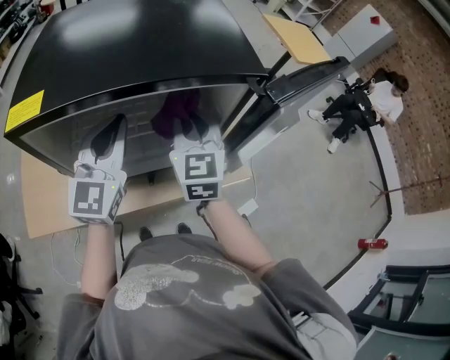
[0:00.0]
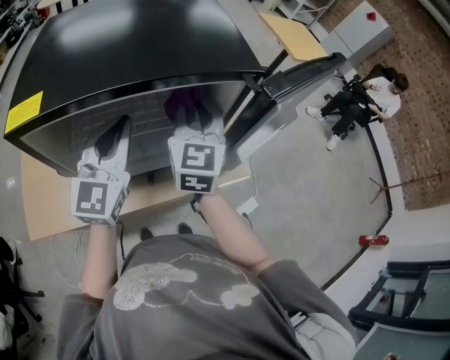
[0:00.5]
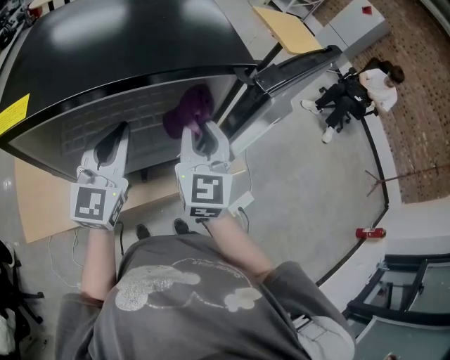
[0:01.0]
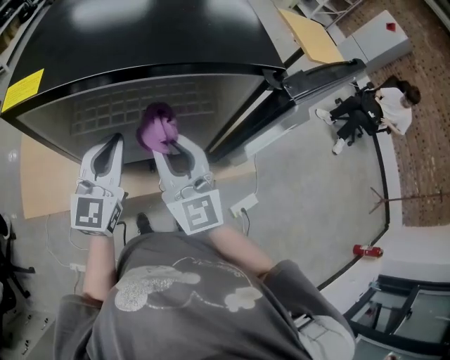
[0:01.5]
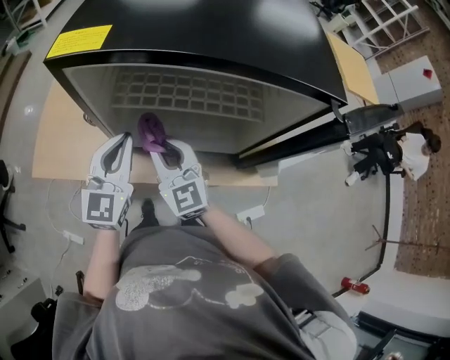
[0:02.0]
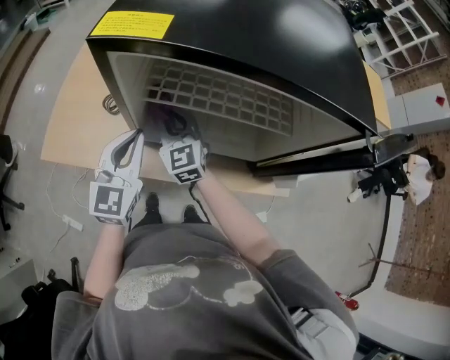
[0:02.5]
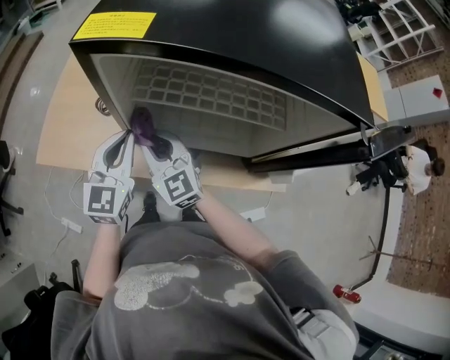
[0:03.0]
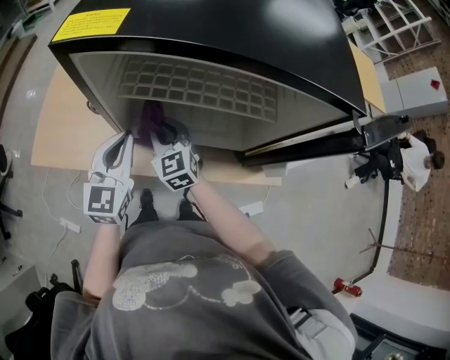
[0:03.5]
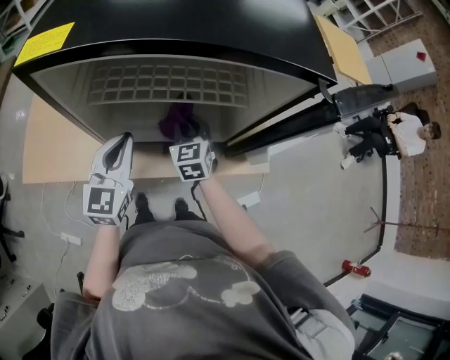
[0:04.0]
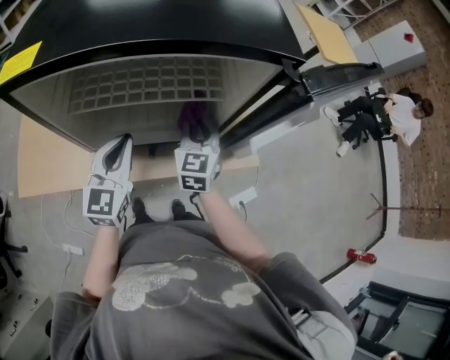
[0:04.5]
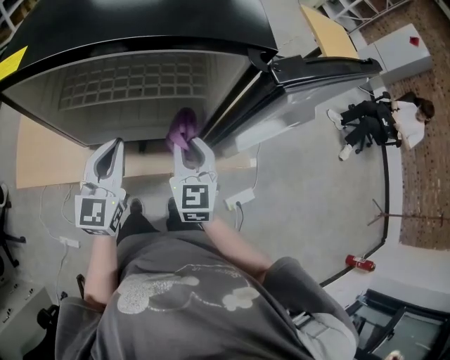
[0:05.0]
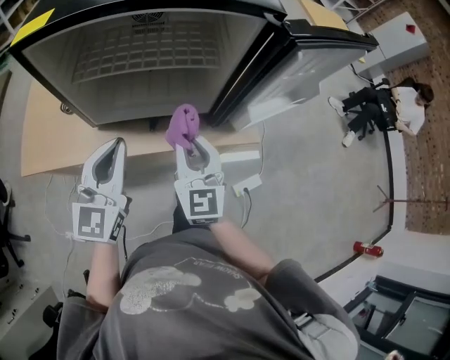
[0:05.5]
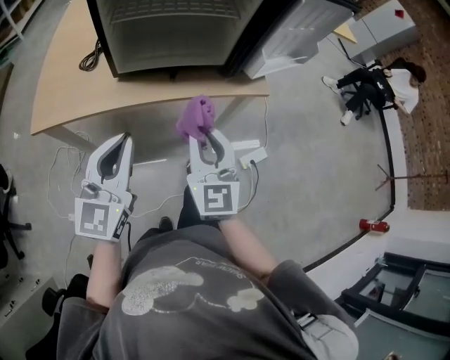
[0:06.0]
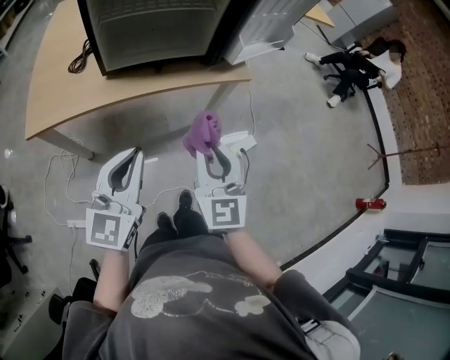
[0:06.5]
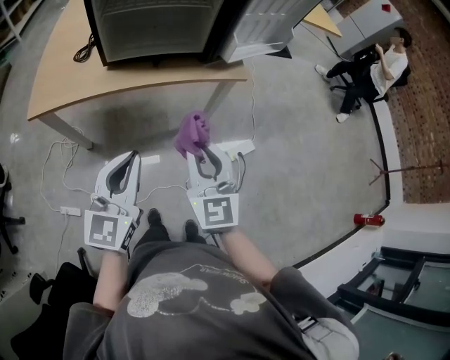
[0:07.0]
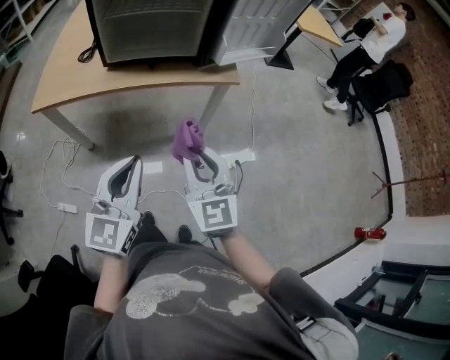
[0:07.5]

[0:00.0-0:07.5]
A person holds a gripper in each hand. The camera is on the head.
0:00.0 to 0:02.0: The left gripper ends up some 15 cm from where it was. Meanwhile the right gripper moves some 20 cm, and rotates about 40 degrees.
0:02.0 to 0:04.0: The right gripper is displaced to the right, downward and forward by approximately 15 cm, and turns by roughly 30 degrees. Meanwhile the left gripper shifts by approximately 5 cm.
0:04.0 to 0:05.5: The right gripper moves backward and upward, roughly 20 cm, and swivels about 20 degrees. Meanwhile the left gripper goes about 15 cm backward, upward and to the right.
0:05.5 to 0:07.5: The grippers both shift backward by about 30 cm.

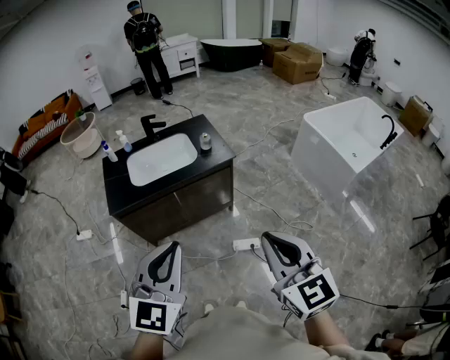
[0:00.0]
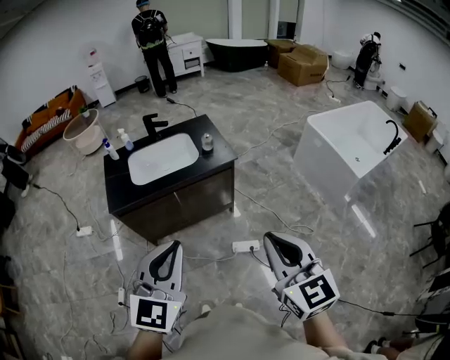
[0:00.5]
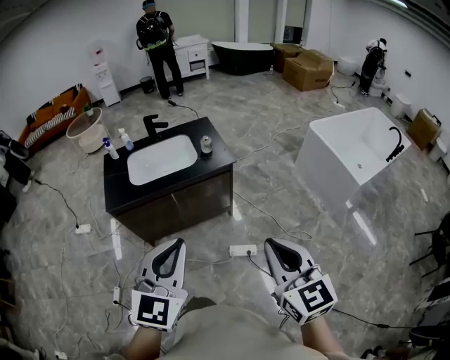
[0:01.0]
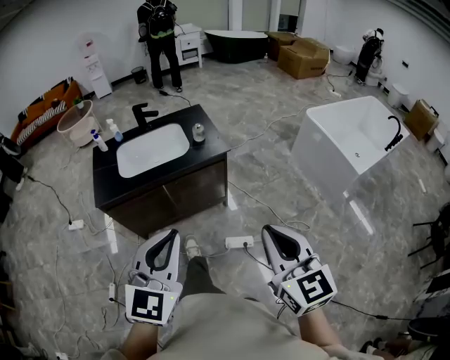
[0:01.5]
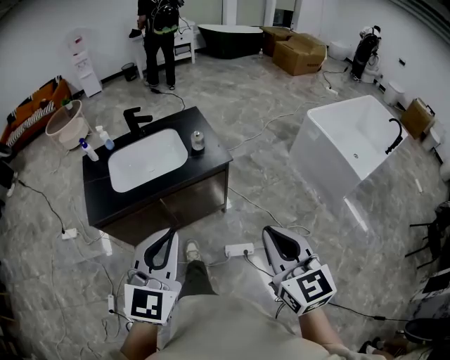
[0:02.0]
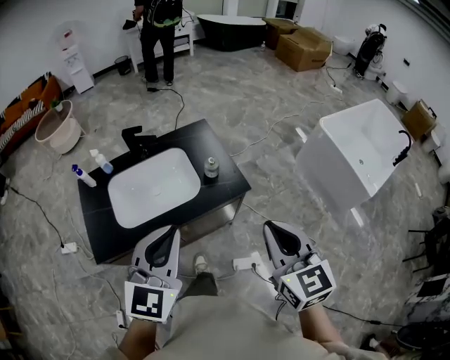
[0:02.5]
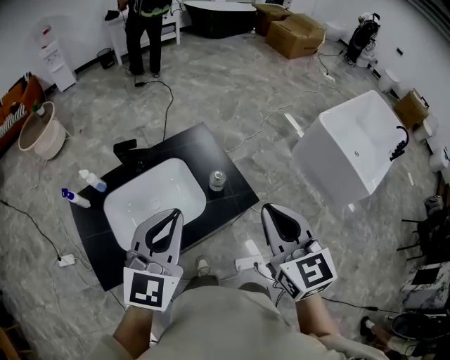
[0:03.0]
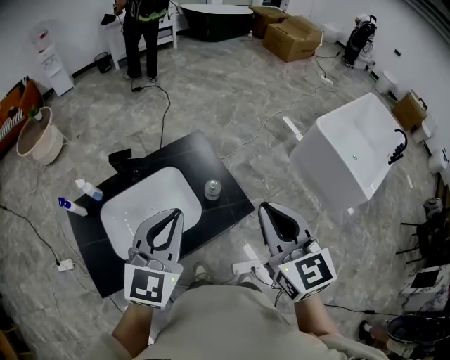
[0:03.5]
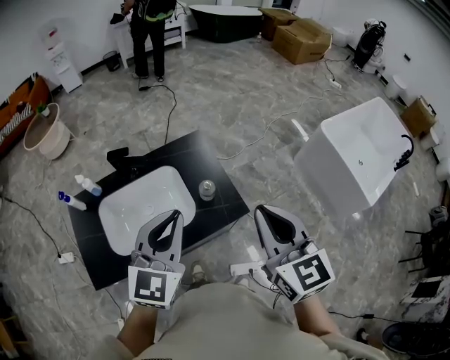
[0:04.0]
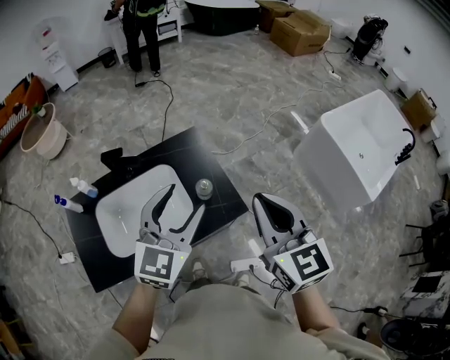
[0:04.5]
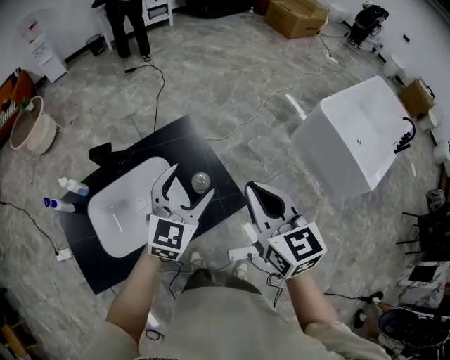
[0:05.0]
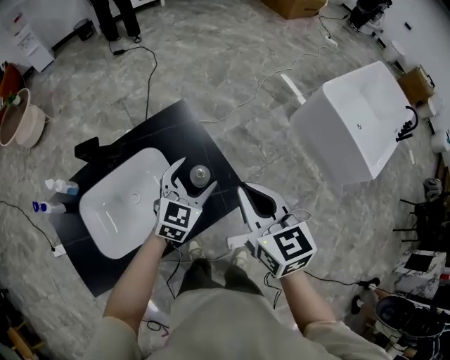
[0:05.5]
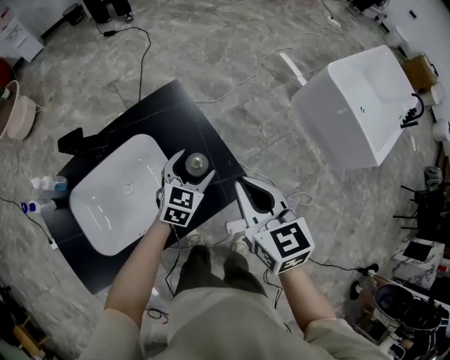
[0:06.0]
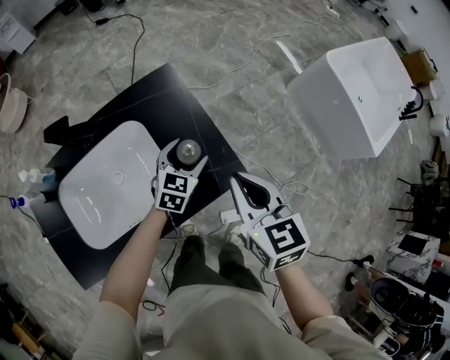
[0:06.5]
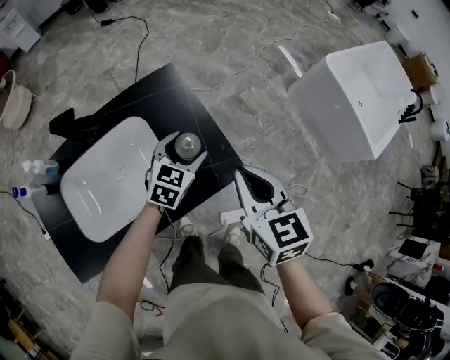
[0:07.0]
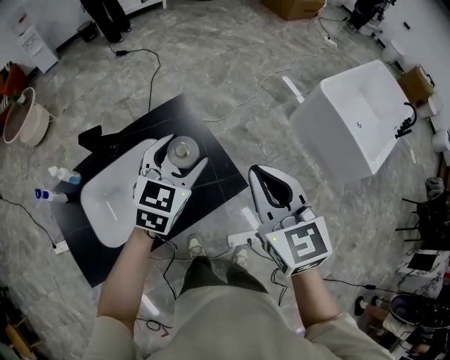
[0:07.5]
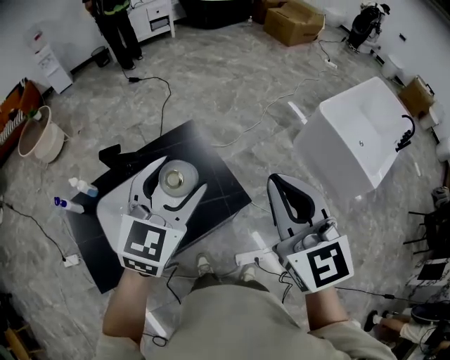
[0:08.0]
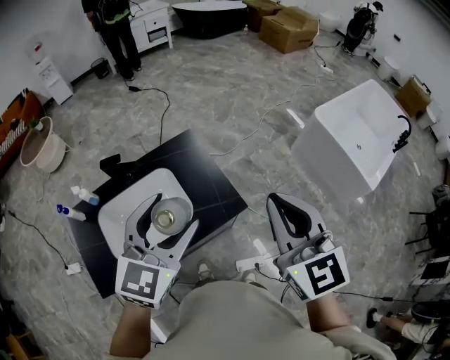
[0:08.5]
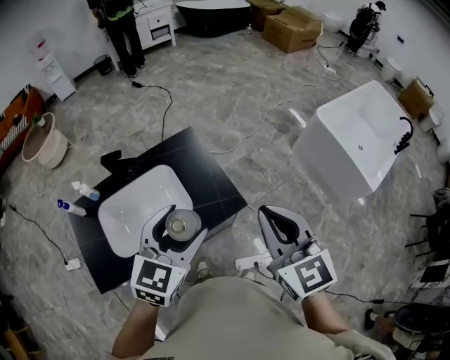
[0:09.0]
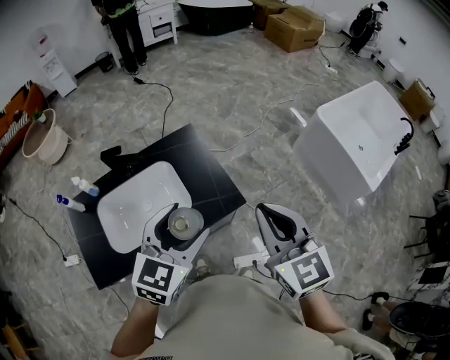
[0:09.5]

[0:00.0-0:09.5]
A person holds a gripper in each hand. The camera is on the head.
0:00.0 to 0:02.0: Both grippers travel together forward and downward, roughly 20 cm.
0:02.0 to 0:04.0: The two grippers travel together, forward, roughly 40 cm.
0:04.0 to 0:05.5: The right gripper shifts some 20 cm downward and forward; the left gripper is displaced downward and forward by about 30 cm, changes its angle by about 20 degrees, and opens.
0:05.5 to 0:07.5: The left gripper travels upward by approximately 10 cm. The right gripper shifts some 5 cm upward.
0:07.5 to 0:09.5: The left gripper is displaced backward and upward by roughly 20 cm; the right gripper moves backward and upward, some 10 cm.

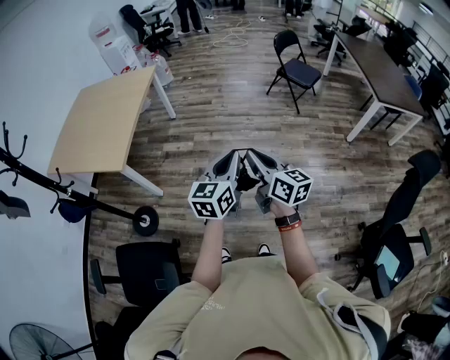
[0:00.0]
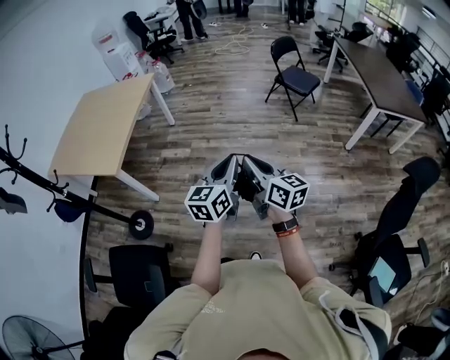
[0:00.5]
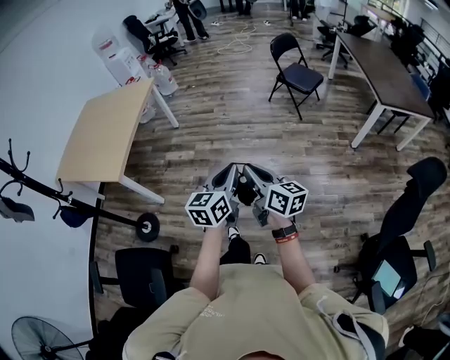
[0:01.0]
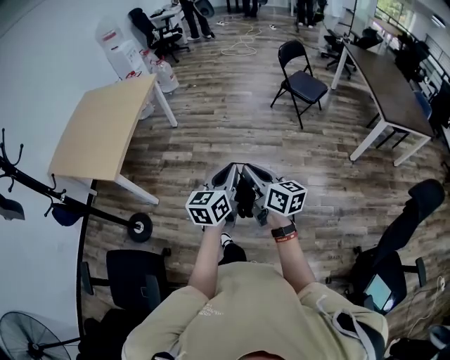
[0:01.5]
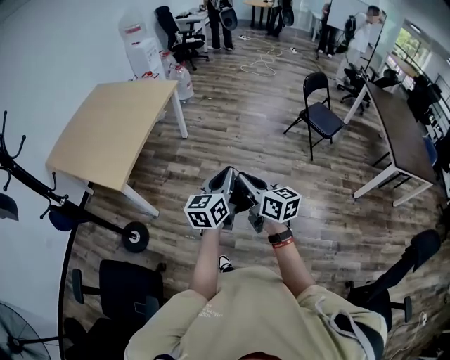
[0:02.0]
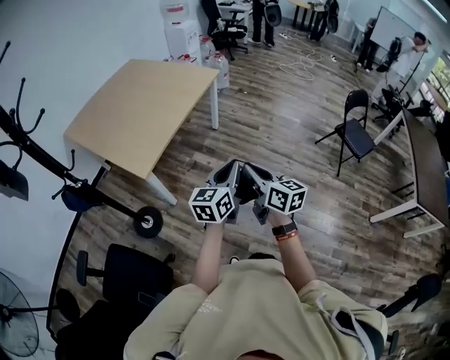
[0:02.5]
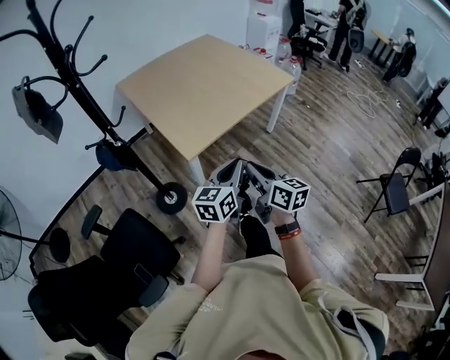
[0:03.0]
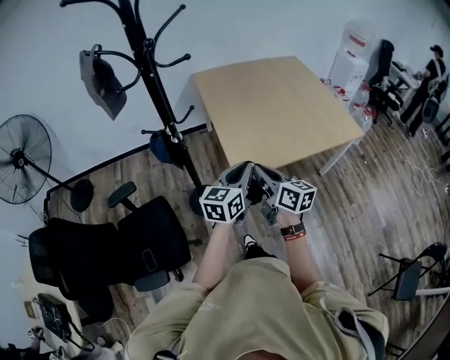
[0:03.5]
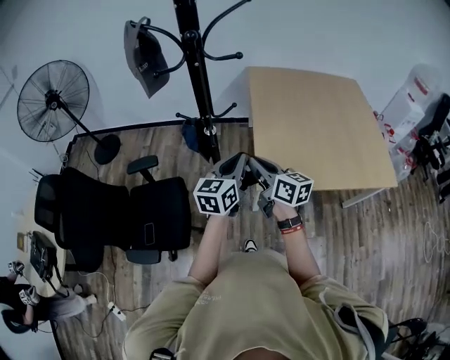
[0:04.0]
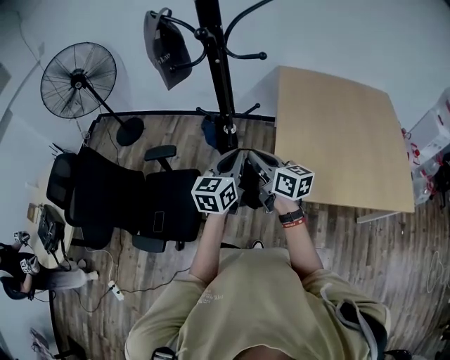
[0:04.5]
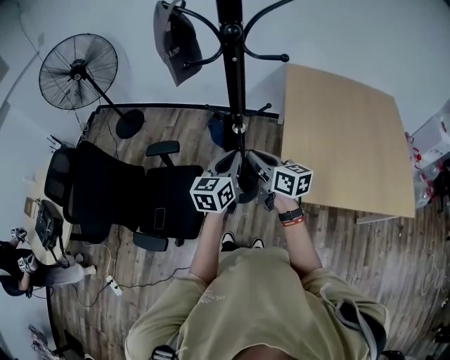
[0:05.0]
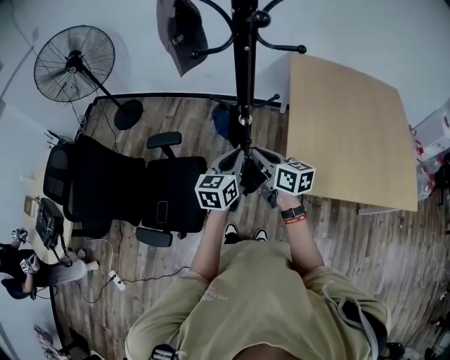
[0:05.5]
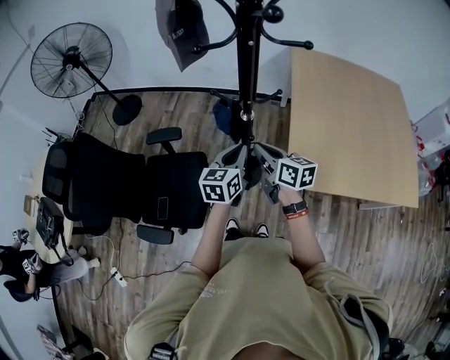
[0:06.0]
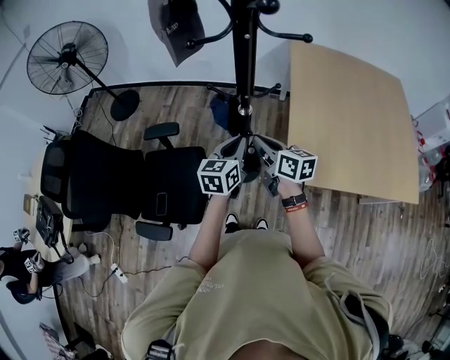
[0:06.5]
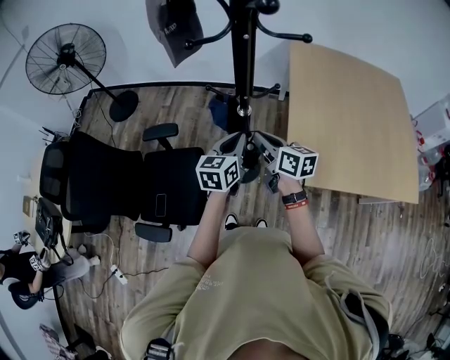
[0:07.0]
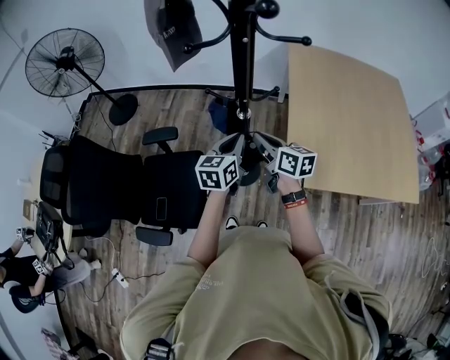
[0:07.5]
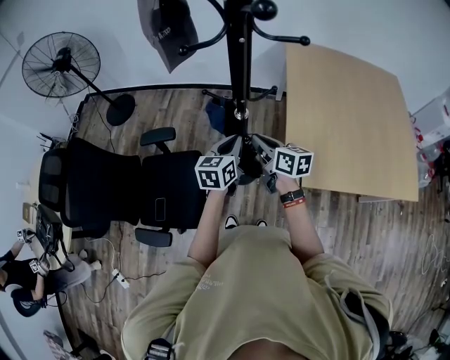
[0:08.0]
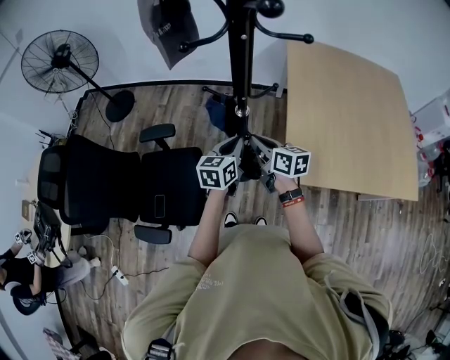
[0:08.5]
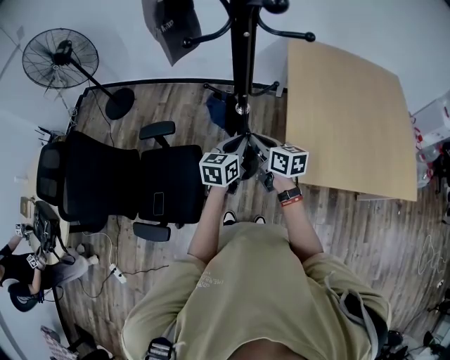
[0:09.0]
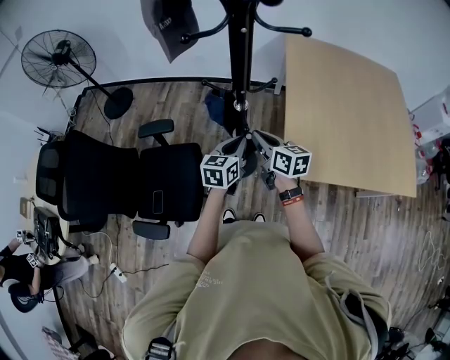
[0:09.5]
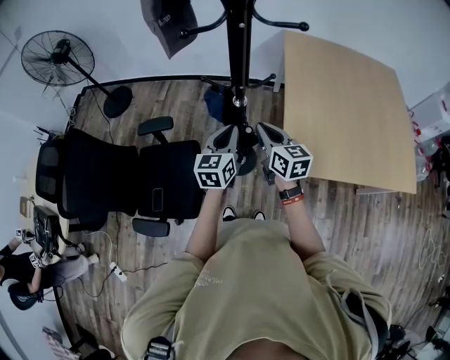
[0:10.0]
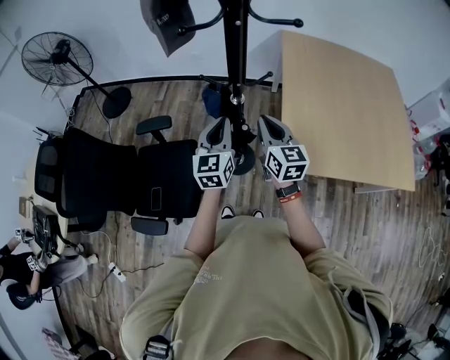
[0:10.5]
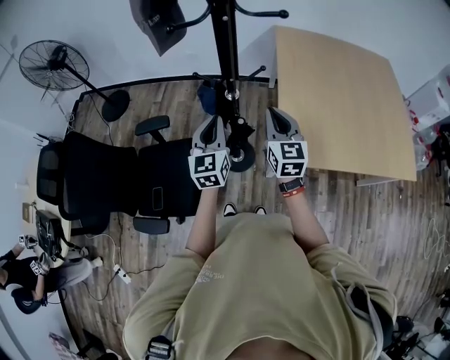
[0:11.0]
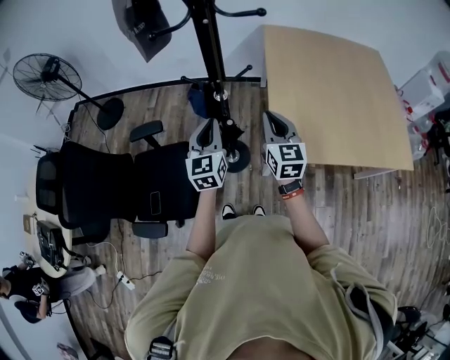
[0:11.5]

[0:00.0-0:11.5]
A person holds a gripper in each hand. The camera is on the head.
0:00.0 to 0:02.0: The two grippers go roughly 20 cm forward.
0:02.0 to 0:04.0: The pair of grippers is taken roughly 70 cm. The right gripper changes its angle by some 80 degrees. The left gripper rotates roughly 70 degrees.
0:04.0 to 0:06.0: The grippers both shift forward, to the left and downward by about 20 cm.
0:06.0 to 0:07.5: There are only small adjustments of the grippers.
0:07.5 to 0:09.5: The left gripper shifts some 5 cm downward.
0:09.5 to 0:11.5: The left gripper shifts roughly 10 cm upward, and swivels some 30 degrees. The right gripper travels to the right and upward by approximately 10 cm, and turns by approximately 40 degrees.
